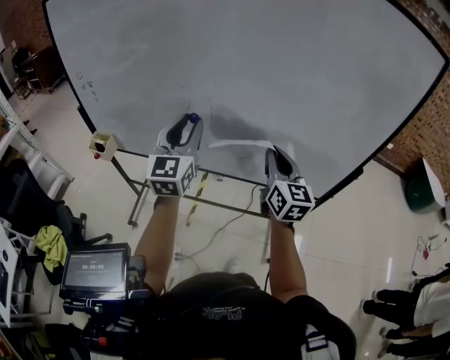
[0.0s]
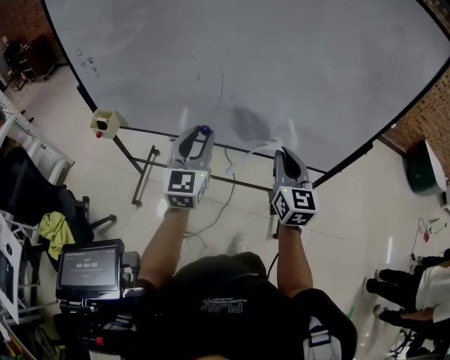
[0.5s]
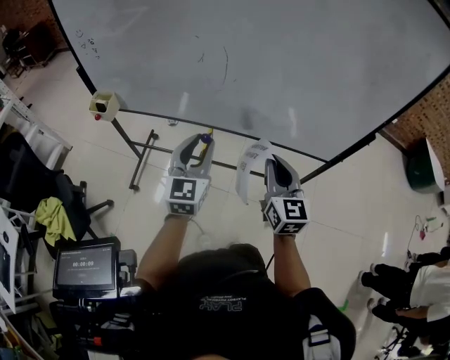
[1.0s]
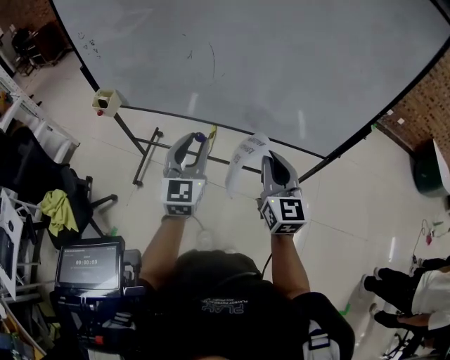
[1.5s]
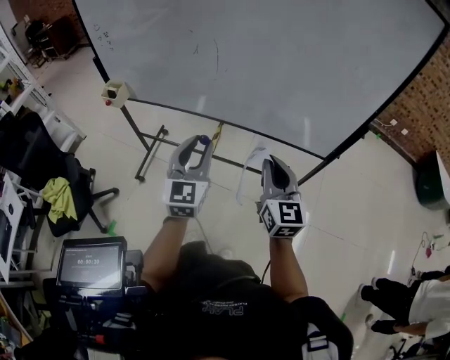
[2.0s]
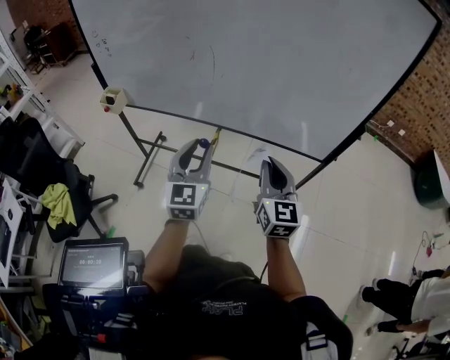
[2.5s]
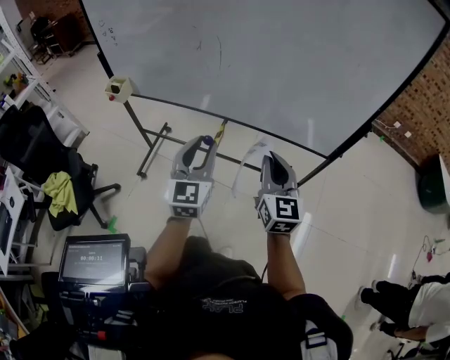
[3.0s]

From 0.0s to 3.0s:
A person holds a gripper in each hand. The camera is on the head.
From 0.0s to 1.5s: Both grippers move backward and downward, roughly 15 cm.
From 1.5s to 3.0s: The left gripper moves backward, about 5 cm.

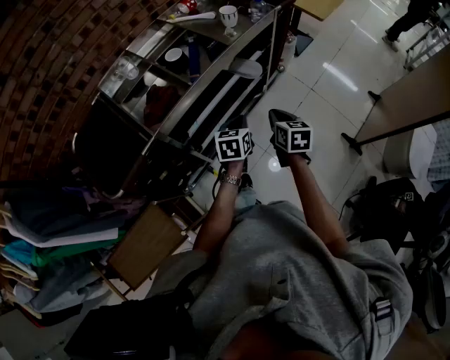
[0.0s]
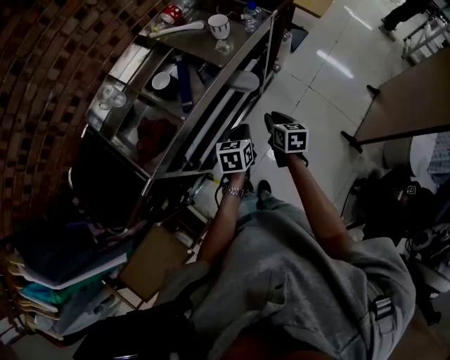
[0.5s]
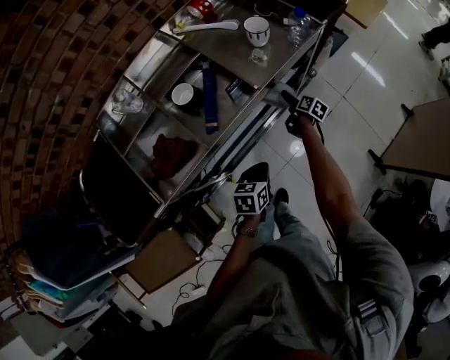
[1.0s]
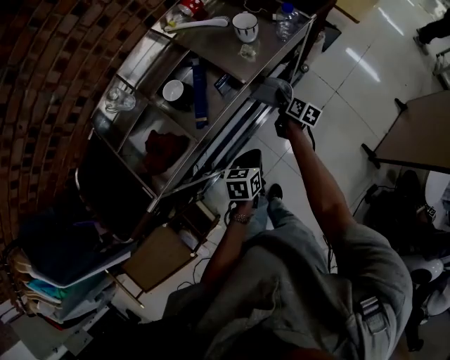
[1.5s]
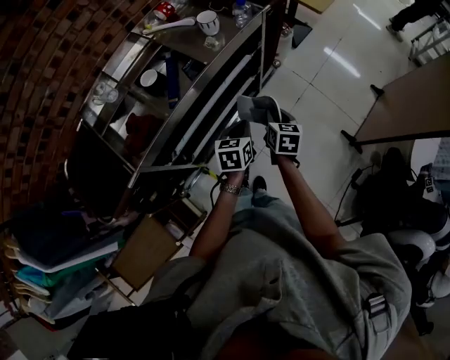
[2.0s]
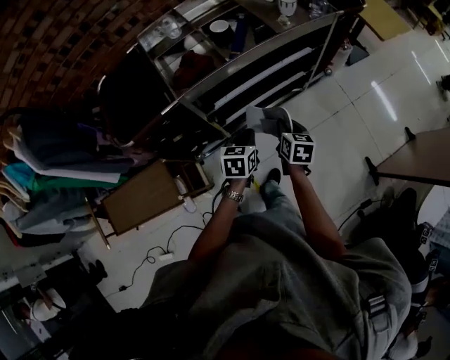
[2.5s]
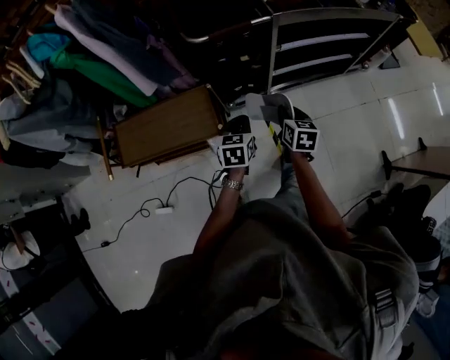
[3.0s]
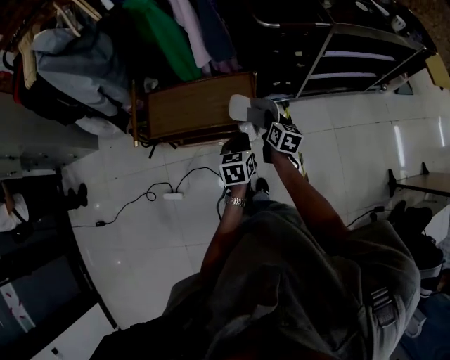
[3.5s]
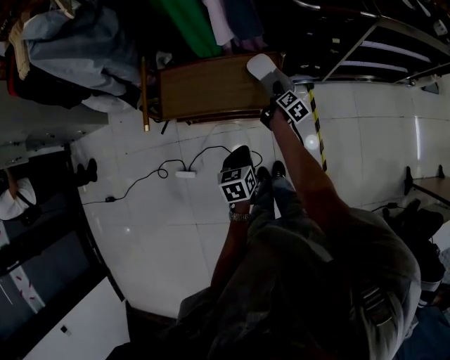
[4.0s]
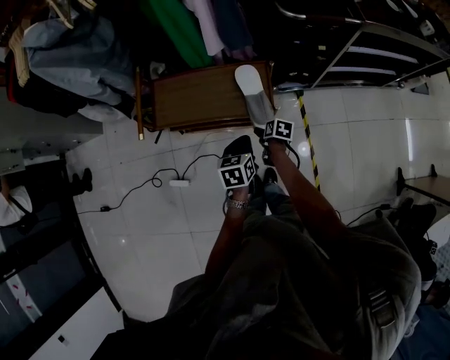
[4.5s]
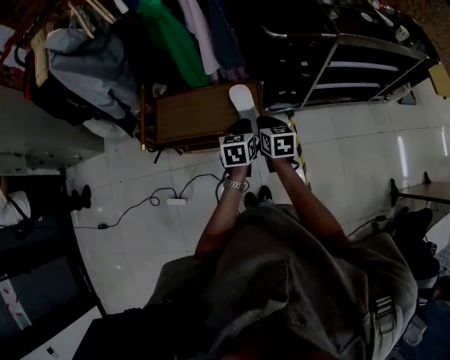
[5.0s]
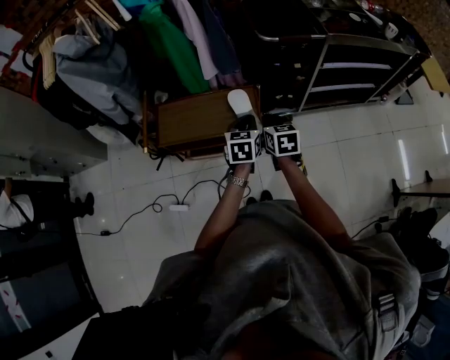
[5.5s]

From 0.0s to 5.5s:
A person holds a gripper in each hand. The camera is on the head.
From 0.0s to 2.0s: The left gripper shifts approximately 10 cm forward and to the right. The right gripper goes roughly 15 cm forward, to the right and downward, and opens, then closes once more.
From 2.0s to 3.5s: Both grippers are carried about 80 cm. The left gripper changes its angle by some 40 degrees. Meanwhile the right gripper changes its angle by approximately 30 degrees.
From 3.5s to 5.5s: The right gripper moves roughly 20 cm downward and comes back, swivels approximately 20 degrees, and opens, then closes again; the left gripper heads upward and forward, covering approximately 10 cm.

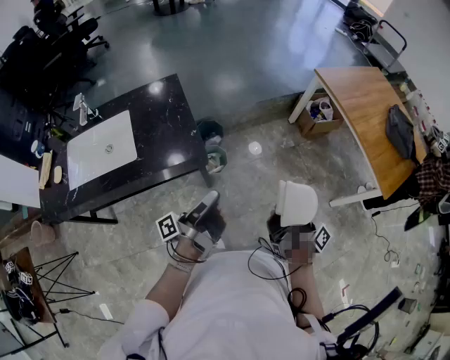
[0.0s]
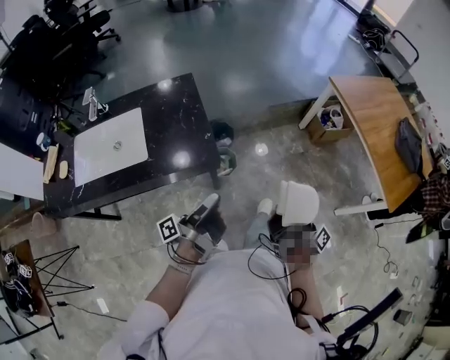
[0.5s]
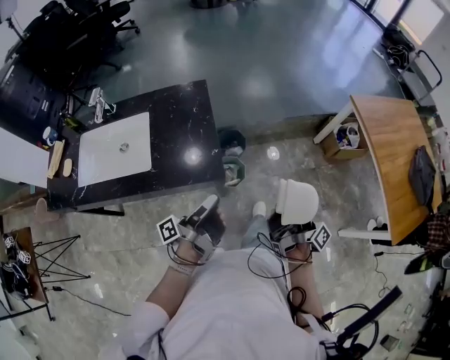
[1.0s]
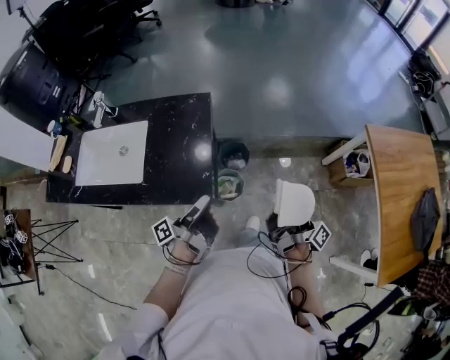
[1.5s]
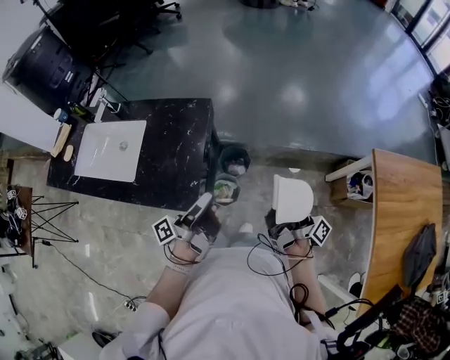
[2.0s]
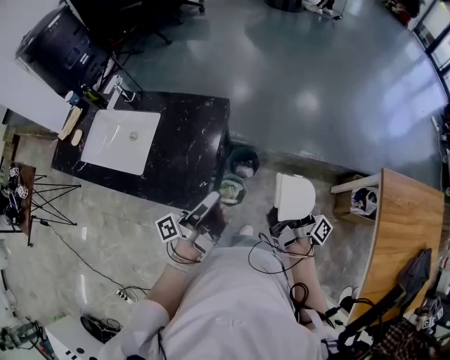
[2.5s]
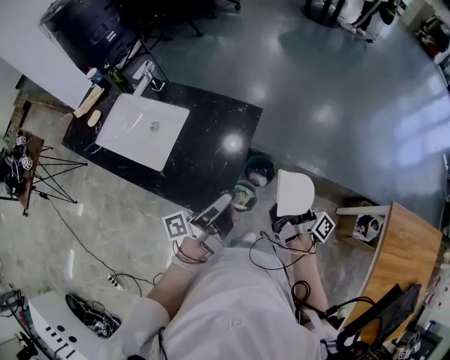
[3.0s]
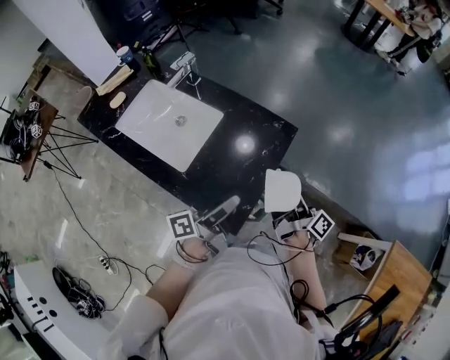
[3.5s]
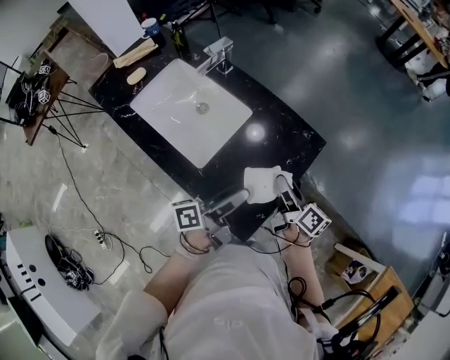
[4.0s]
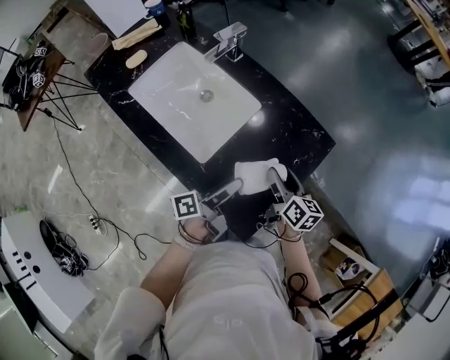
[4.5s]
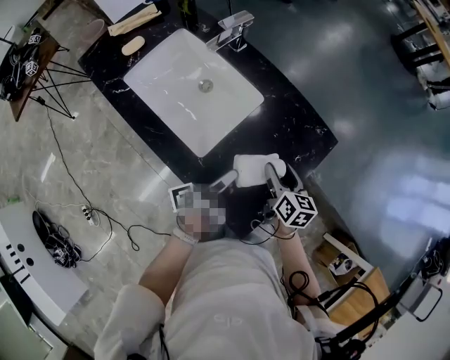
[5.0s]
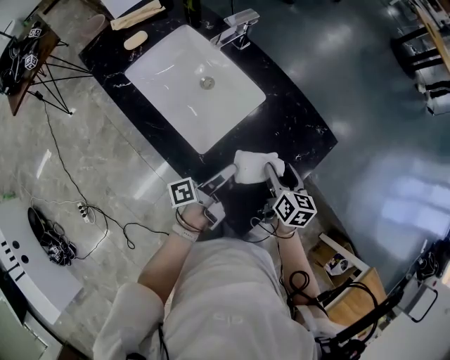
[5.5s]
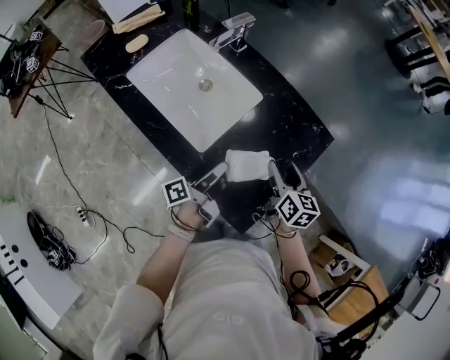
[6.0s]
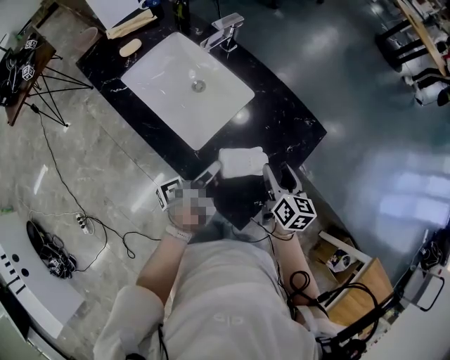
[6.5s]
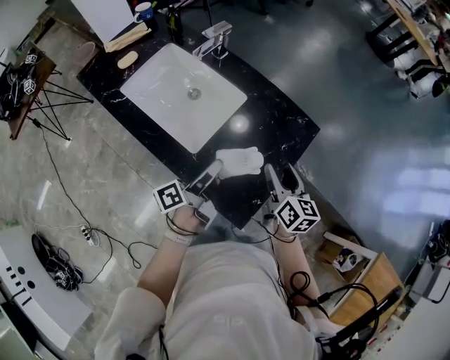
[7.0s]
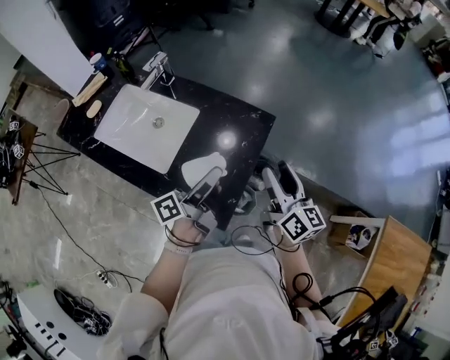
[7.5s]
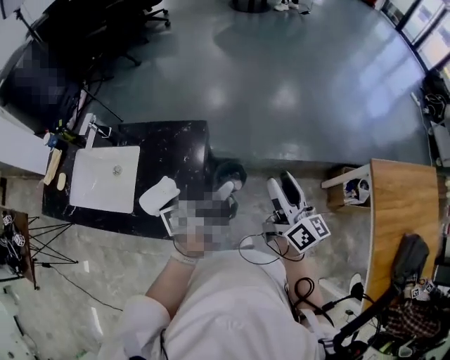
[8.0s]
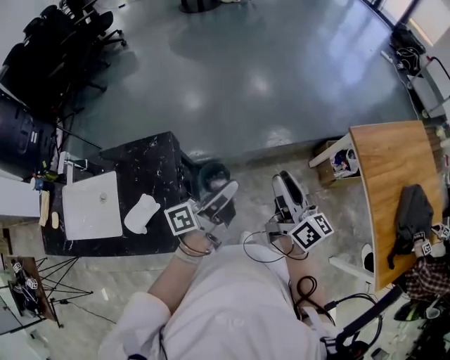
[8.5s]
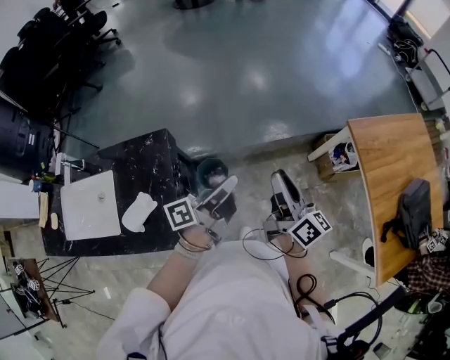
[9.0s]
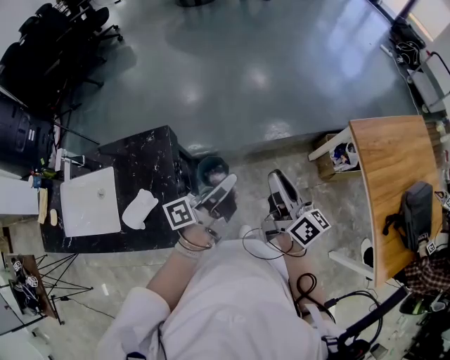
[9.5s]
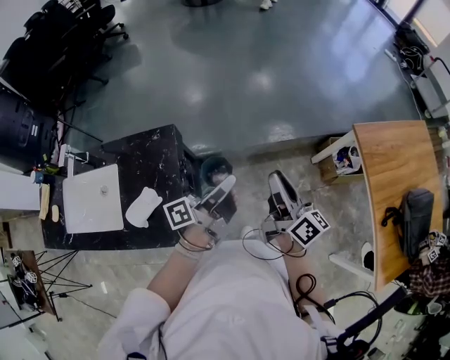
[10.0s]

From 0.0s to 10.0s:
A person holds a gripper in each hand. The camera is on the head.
From 0.0s to 2.0s: The right gripper shifts by some 40 cm, and swivels some 30 degrees.
From 2.0s to 4.0s: The right gripper changes place by roughly 40 cm, and tilts its fingers about 30 degrees downward.
From 4.0s to 6.0s: The right gripper swivels roughly 40 degrees.
From 6.0s to 8.0s: The right gripper moves roughly 40 cm, and angles its fingers upward, by some 30 degrees.
From 8.0s to 10.0s: The right gripper ends up approximately 10 cm from where it was, and closes.

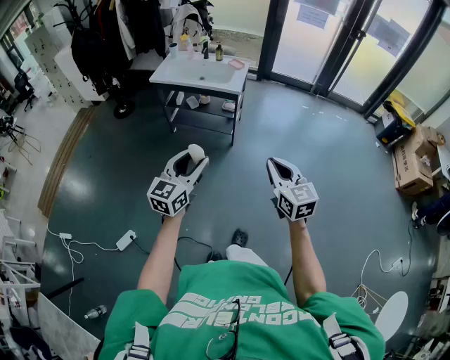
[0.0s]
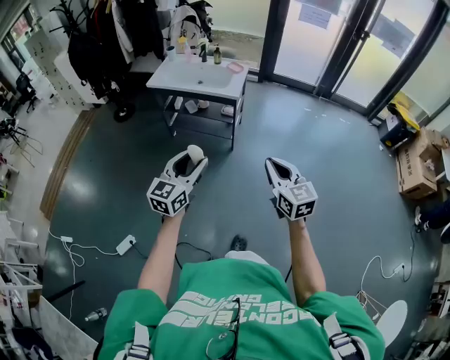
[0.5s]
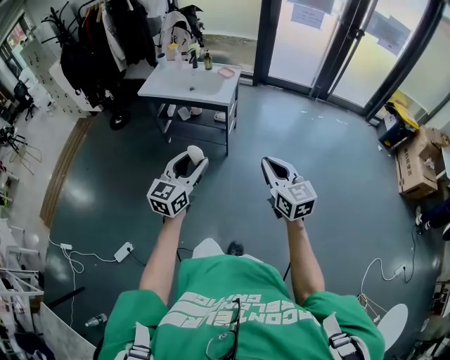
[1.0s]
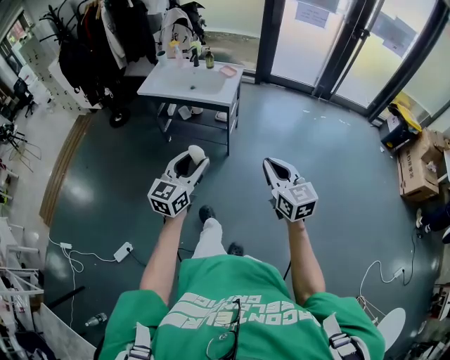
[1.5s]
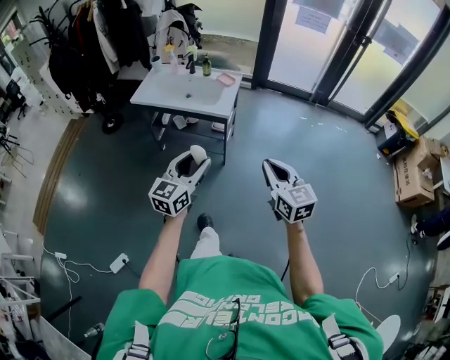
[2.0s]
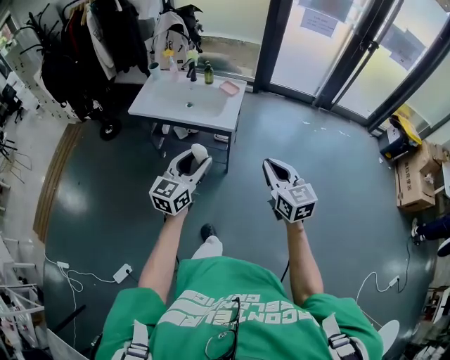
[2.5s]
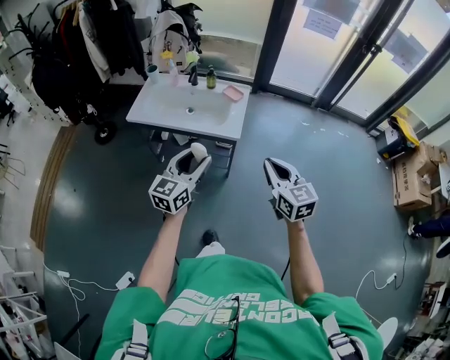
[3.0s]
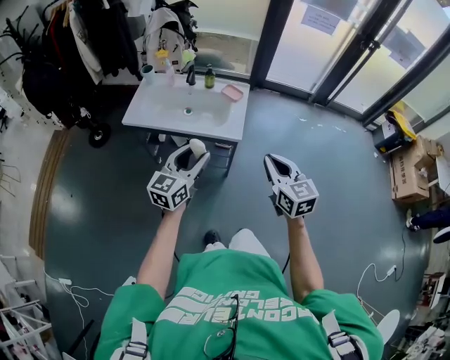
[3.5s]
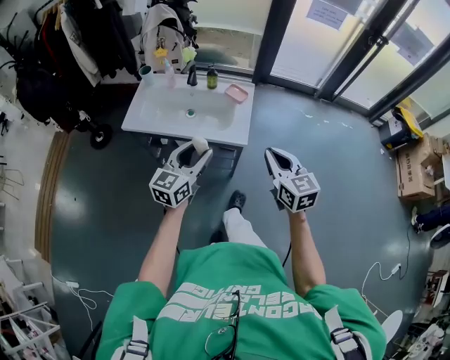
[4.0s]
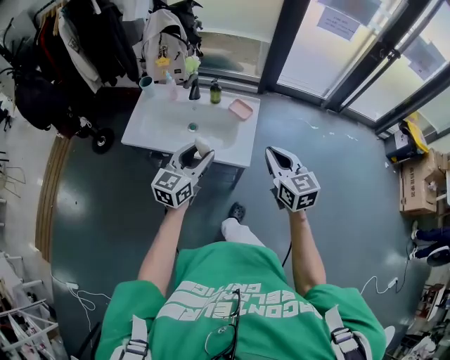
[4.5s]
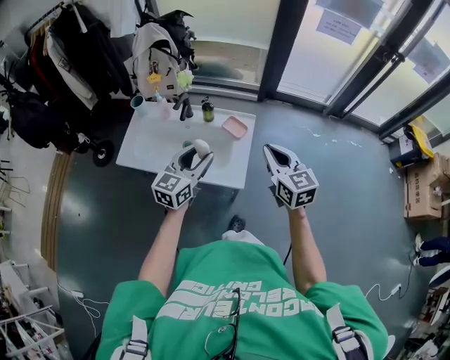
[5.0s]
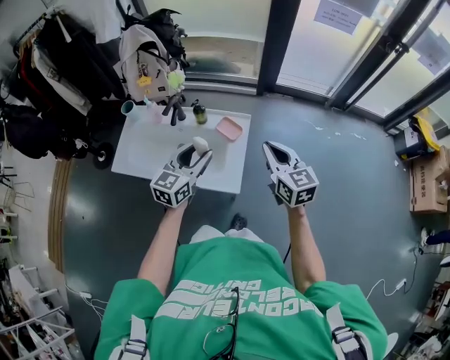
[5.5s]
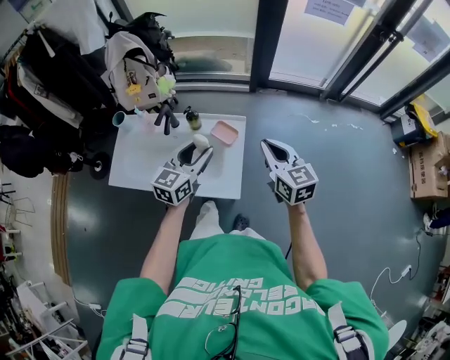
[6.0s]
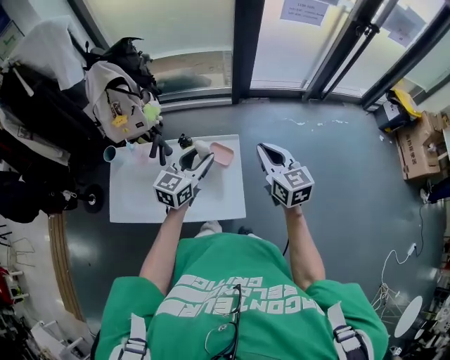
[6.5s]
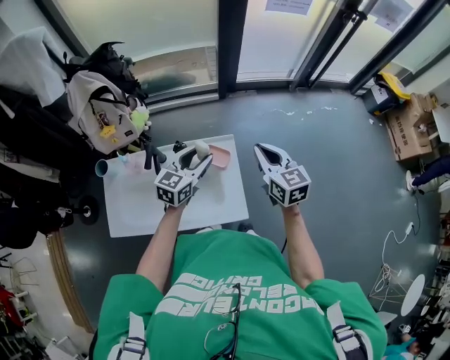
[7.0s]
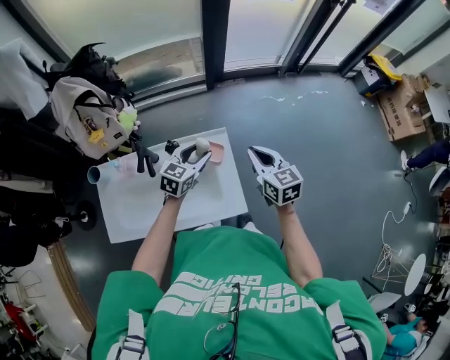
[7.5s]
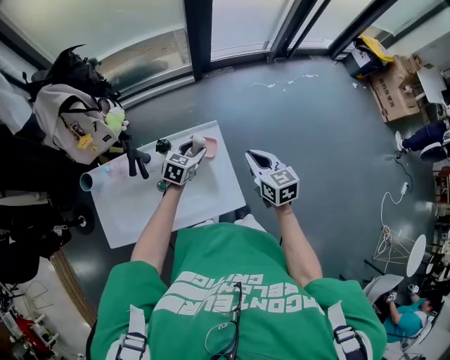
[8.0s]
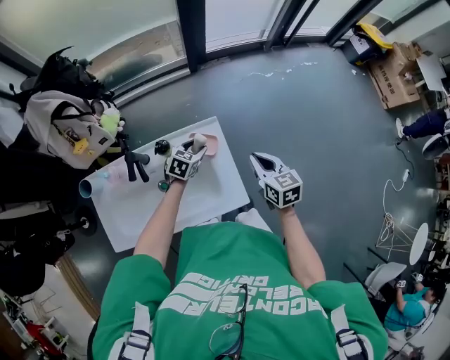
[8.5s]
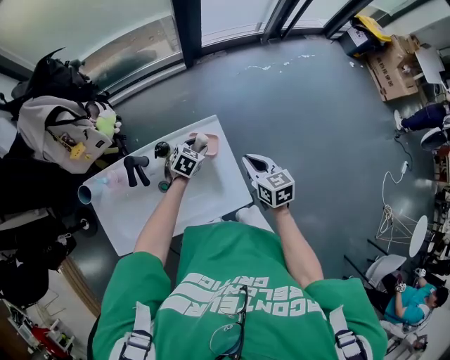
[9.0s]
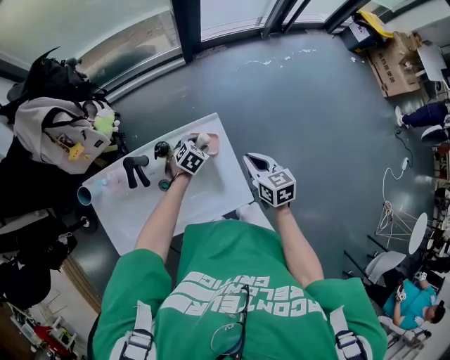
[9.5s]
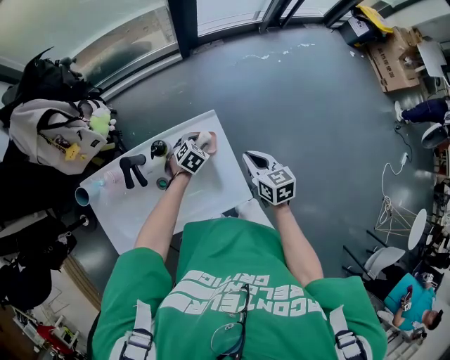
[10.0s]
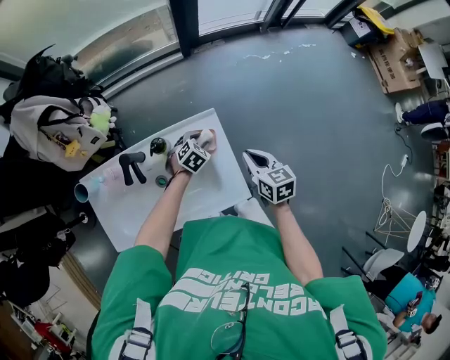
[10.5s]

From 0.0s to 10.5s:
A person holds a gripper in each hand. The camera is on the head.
From 0.0s to 2.0s: Both grippers travel together forward, about 25 cm.
From 2.0s to 4.0s: Both grippers travel together forward and to the left, about 30 cm.
From 4.0s to 6.5s: The grippers both shift forward by approximately 40 cm.
From 6.5s to 8.5s: The right gripper shifts some 15 cm downward, and rotates approximately 30 degrees. The left gripper travels downward by some 25 cm, and tilts its fingers about 30 degrees downward.
From 8.5s to 10.5s: The left gripper travels downward by about 5 cm, and rotates approximately 20 degrees.
